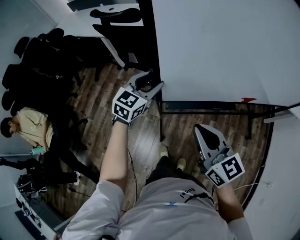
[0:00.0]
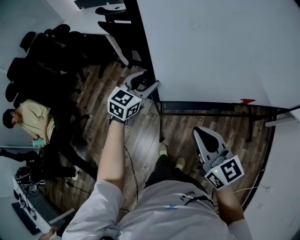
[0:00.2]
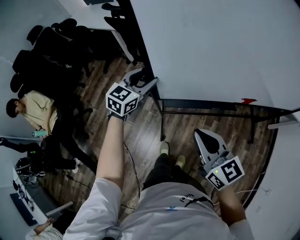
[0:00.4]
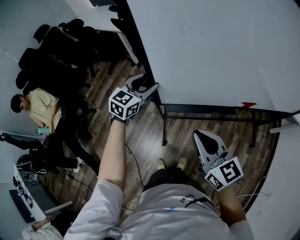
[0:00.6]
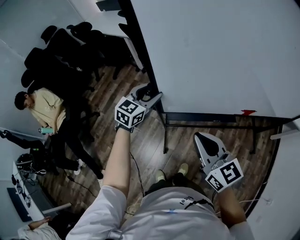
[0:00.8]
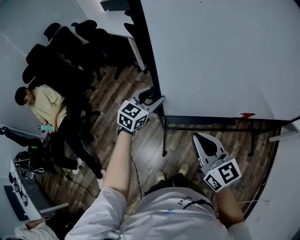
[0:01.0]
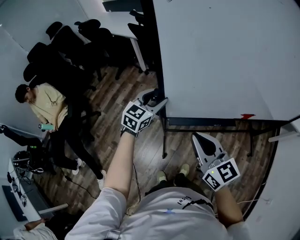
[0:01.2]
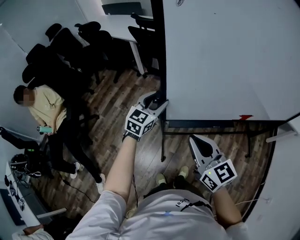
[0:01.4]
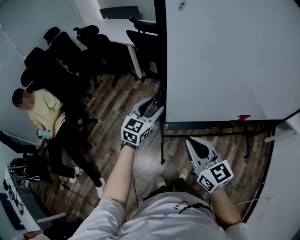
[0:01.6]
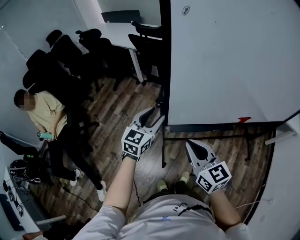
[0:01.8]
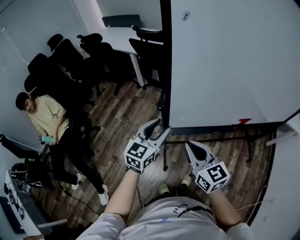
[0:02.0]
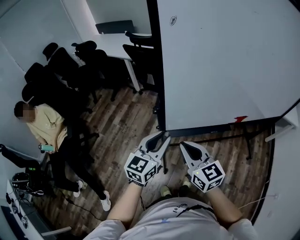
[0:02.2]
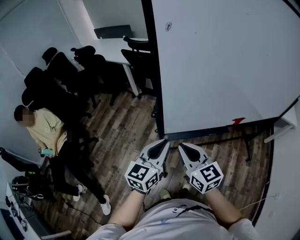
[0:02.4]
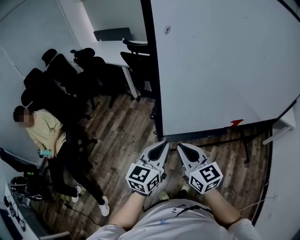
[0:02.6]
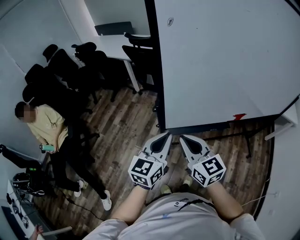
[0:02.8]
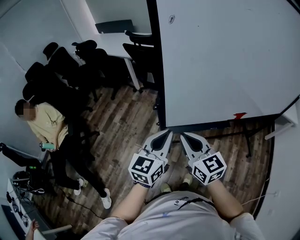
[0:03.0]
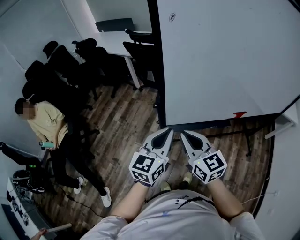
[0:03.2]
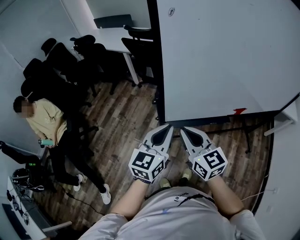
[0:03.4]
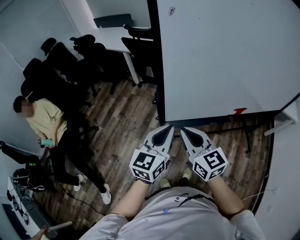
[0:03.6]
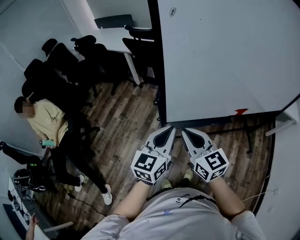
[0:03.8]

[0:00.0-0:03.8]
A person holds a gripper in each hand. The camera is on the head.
0.0 to 1.2 s: The two grippers go roughly 20 cm backward and to the left.
1.2 to 2.6 s: The left gripper is displaced backward and upward by roughly 20 cm, turns by about 20 degrees, and closes up. Meanwhile the right gripper travels to the left by approximately 5 cm.
2.6 to 3.8 s: There are only small adjustments of the grippers.

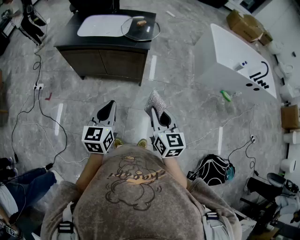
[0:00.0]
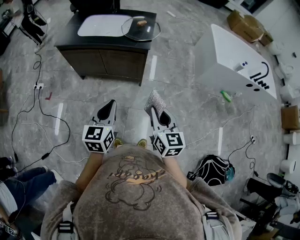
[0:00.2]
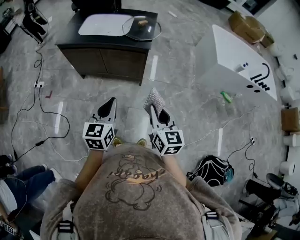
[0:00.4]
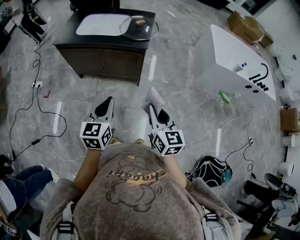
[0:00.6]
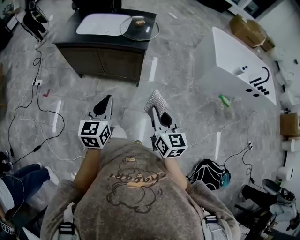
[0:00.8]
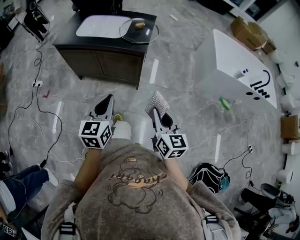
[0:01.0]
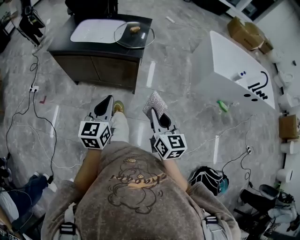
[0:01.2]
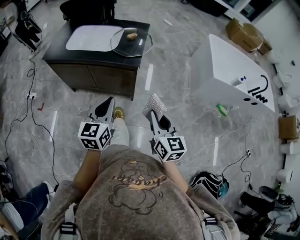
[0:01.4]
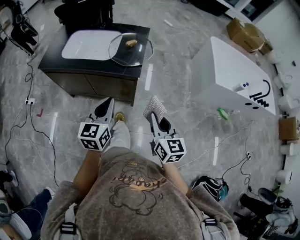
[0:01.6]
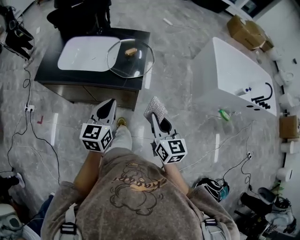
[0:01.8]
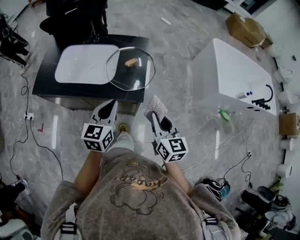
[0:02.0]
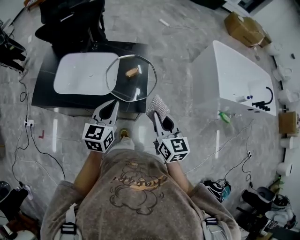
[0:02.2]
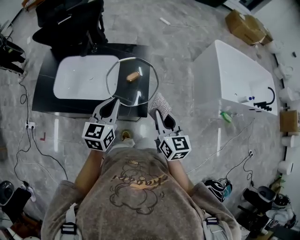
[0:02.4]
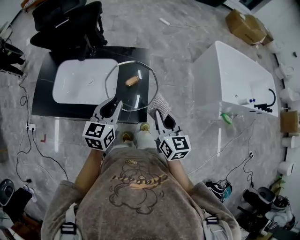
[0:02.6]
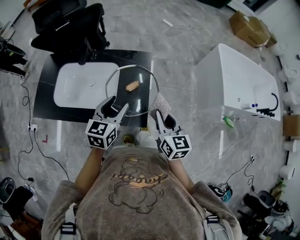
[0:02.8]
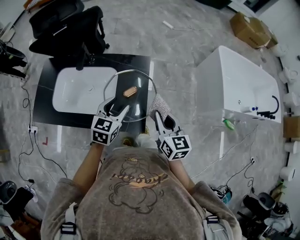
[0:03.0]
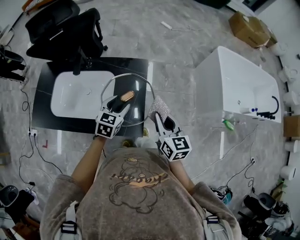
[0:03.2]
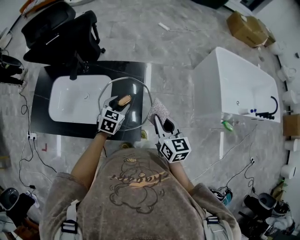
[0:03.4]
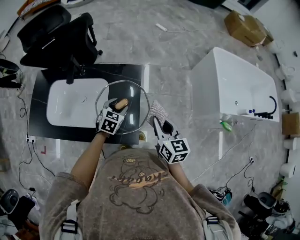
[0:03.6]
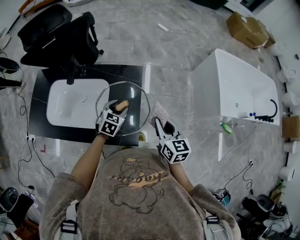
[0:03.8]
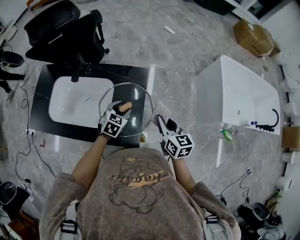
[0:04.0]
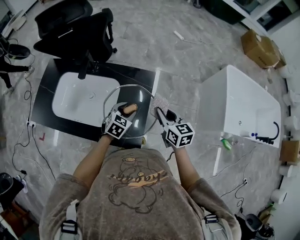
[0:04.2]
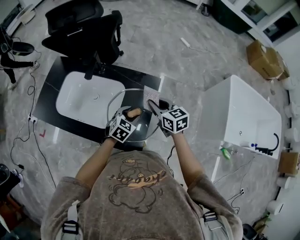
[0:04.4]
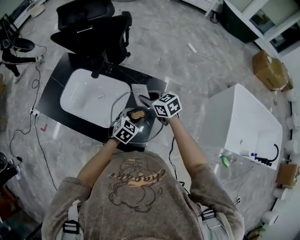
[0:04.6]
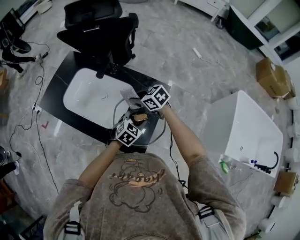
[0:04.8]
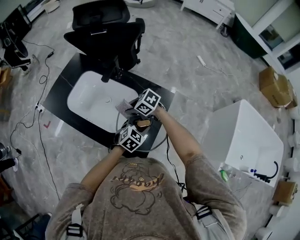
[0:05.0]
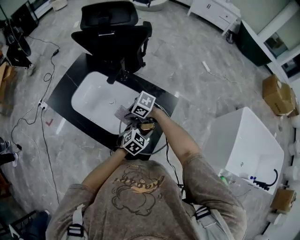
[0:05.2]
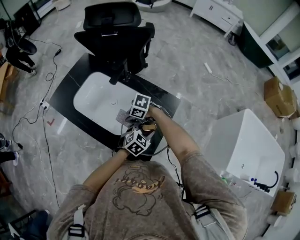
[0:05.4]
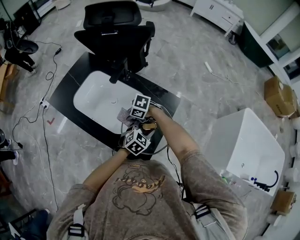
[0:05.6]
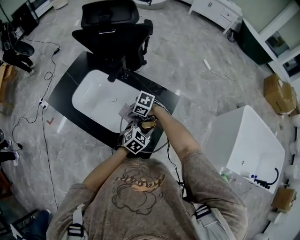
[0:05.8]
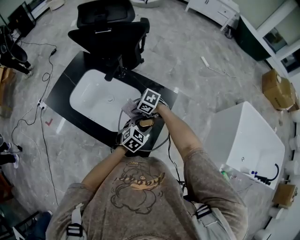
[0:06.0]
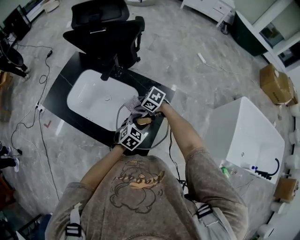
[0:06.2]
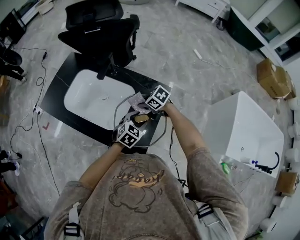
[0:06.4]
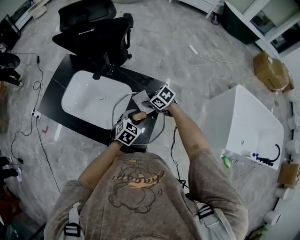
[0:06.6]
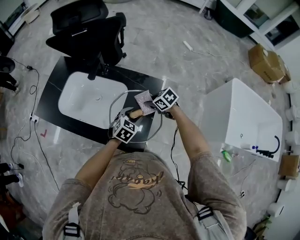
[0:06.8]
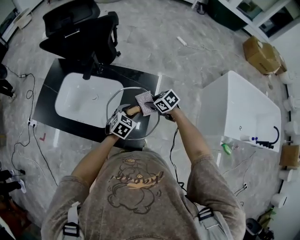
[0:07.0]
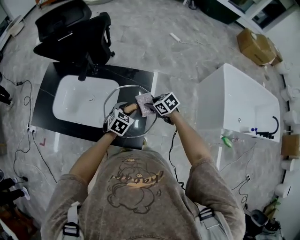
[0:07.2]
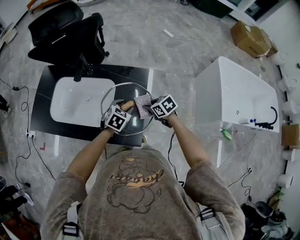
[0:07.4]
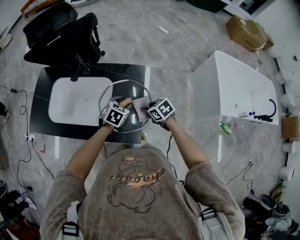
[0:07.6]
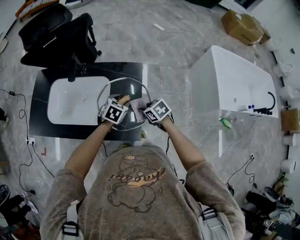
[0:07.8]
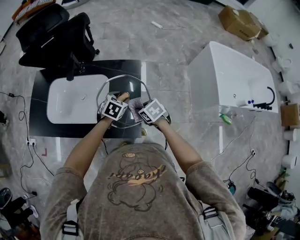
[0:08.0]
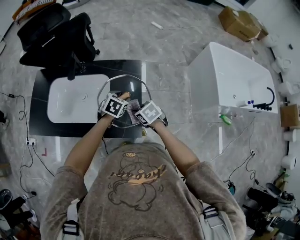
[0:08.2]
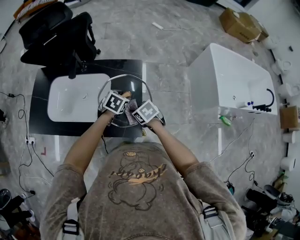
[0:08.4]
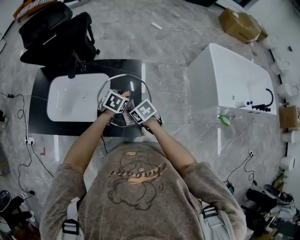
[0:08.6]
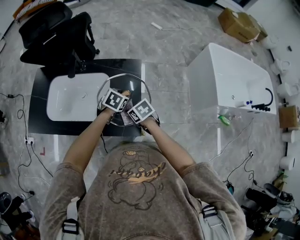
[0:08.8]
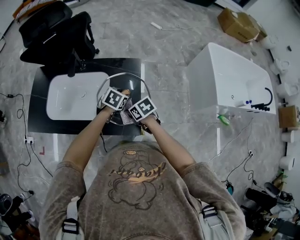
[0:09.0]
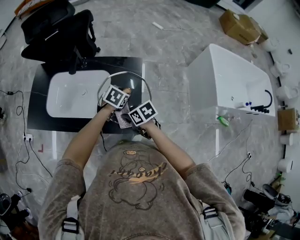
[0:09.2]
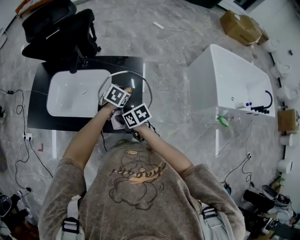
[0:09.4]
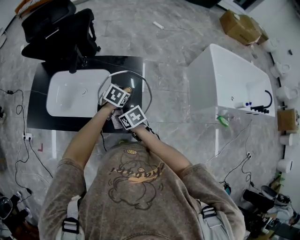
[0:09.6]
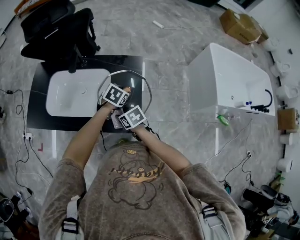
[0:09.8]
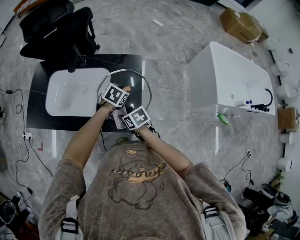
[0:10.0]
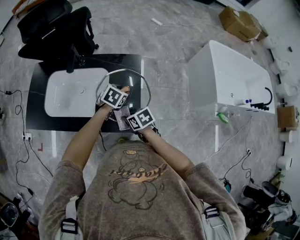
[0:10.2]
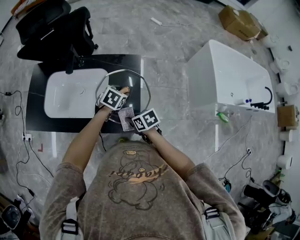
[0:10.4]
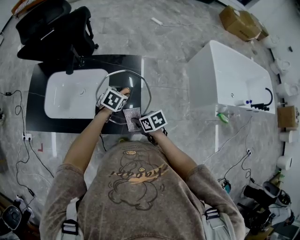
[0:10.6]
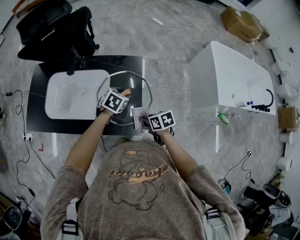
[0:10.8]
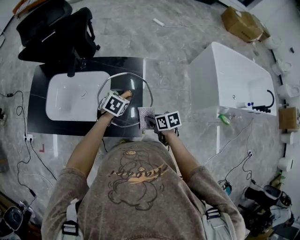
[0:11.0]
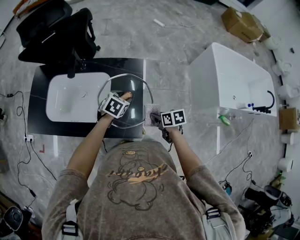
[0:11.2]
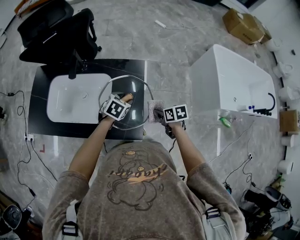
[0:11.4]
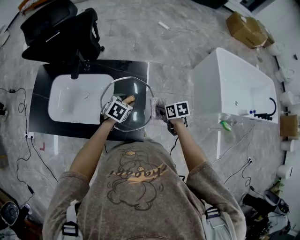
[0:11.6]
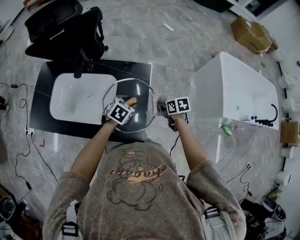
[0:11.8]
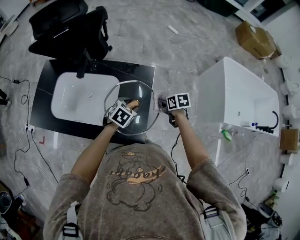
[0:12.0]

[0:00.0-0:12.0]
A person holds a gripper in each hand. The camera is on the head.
0.0 to 1.6 s: The grippers both shift forward by approximately 20 cm.
1.6 to 3.0 s: Both grippers move forward, approximately 35 cm. The left gripper rotates approximately 20 degrees, and opens.
3.0 to 4.4 s: The left gripper is displaced downward and forward by some 15 cm; the right gripper goes some 20 cm forward, and rotates some 30 degrees.
4.4 to 6.0 s: The right gripper changes place by approximately 20 cm, and swivels approximately 70 degrees.
6.0 to 7.6 s: The right gripper moves about 20 cm, and swivels about 50 degrees.
7.6 to 9.0 s: The right gripper moves to the left, about 10 cm.
9.0 to 10.4 s: The right gripper ends up roughly 5 cm from where it was.
10.4 to 12.0 s: The right gripper goes about 25 cm forward and to the right.

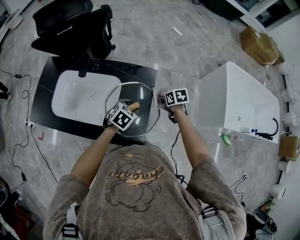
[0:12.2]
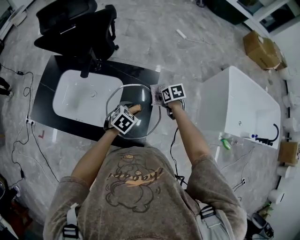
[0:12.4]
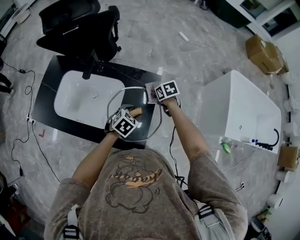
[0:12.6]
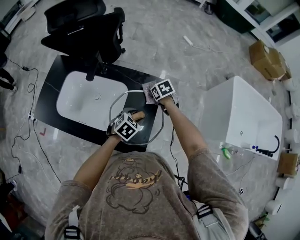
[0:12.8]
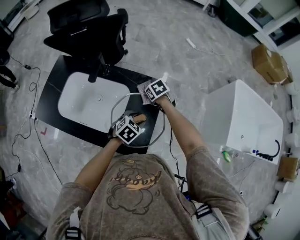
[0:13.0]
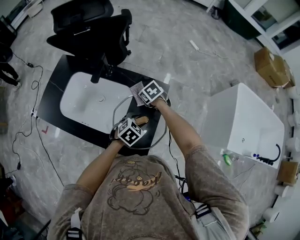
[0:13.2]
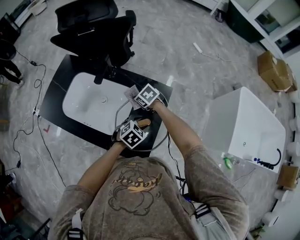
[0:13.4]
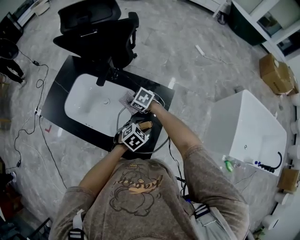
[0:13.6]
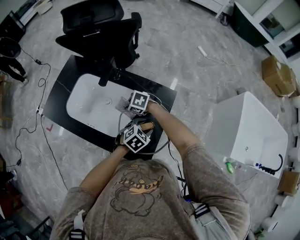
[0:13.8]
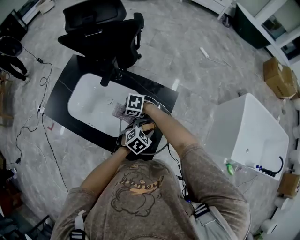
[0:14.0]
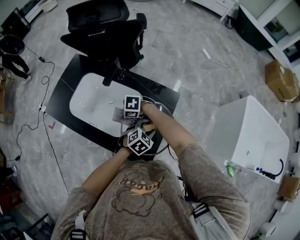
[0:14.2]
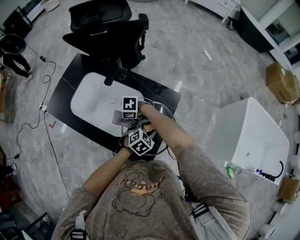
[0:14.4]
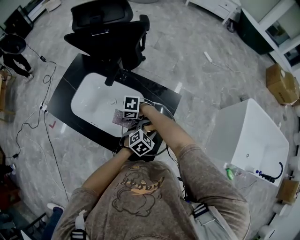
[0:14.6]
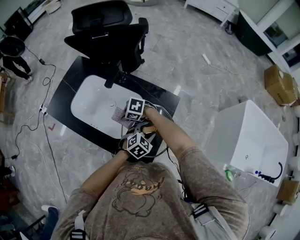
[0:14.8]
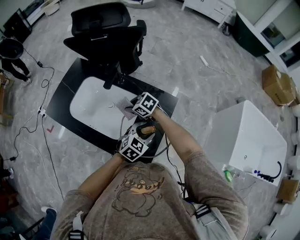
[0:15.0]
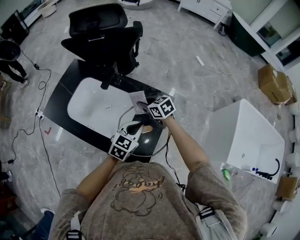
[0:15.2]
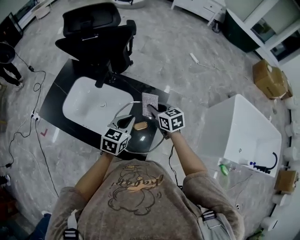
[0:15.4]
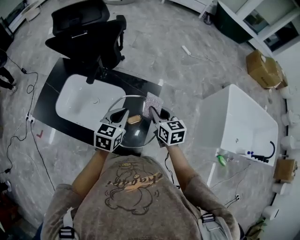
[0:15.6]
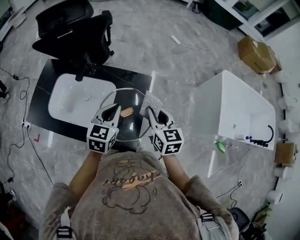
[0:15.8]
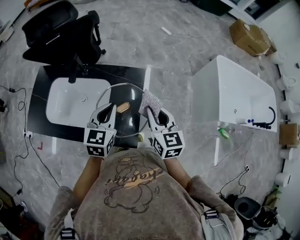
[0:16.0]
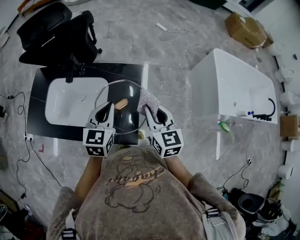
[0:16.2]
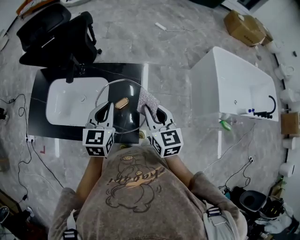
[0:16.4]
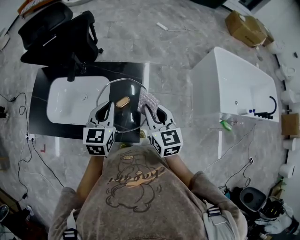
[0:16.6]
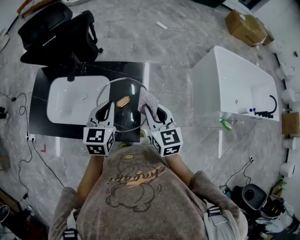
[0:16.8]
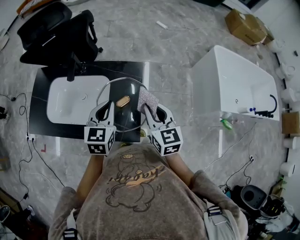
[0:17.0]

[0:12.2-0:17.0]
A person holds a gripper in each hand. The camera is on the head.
12.2 to 13.8 s: The right gripper changes place by about 30 cm, and rotates around the line of its fingers by roughly 70 degrees, counterclockwise from behind.
13.8 to 15.4 s: The right gripper changes place by roughly 20 cm, and turns by some 60 degrees, while the left gripper goes about 10 cm upward, changes its angle by some 30 degrees, and closes.
15.4 to 17.0 s: The right gripper shifts about 20 cm backward, upward and to the right, and turns by roughly 30 degrees. The left gripper travels upward by approximately 5 cm.

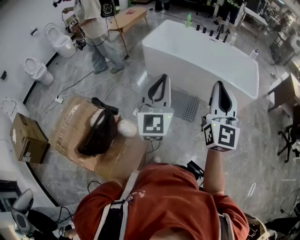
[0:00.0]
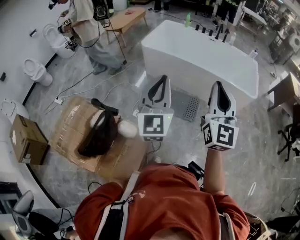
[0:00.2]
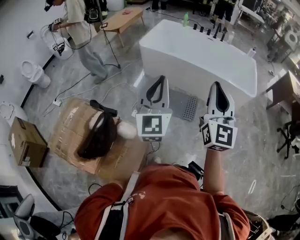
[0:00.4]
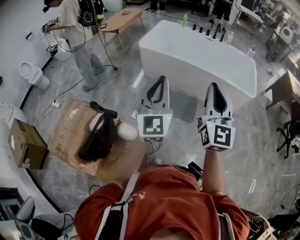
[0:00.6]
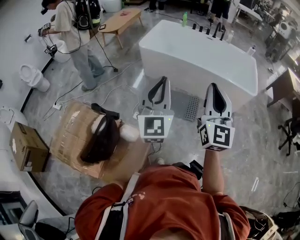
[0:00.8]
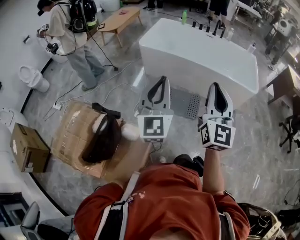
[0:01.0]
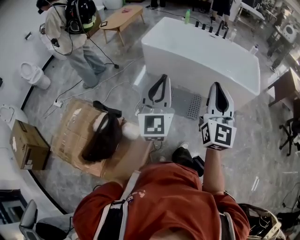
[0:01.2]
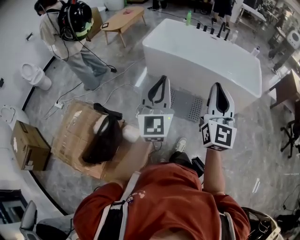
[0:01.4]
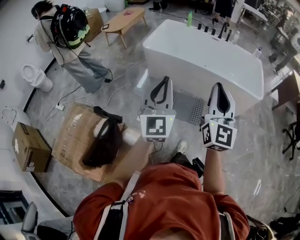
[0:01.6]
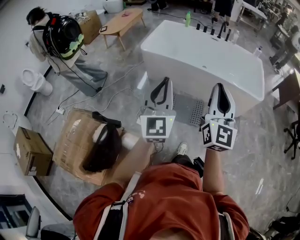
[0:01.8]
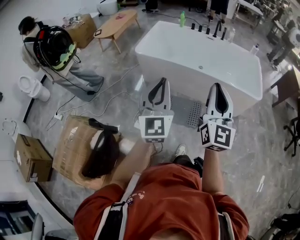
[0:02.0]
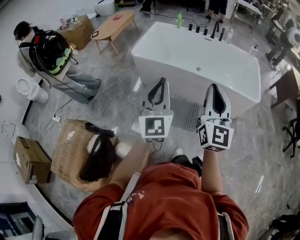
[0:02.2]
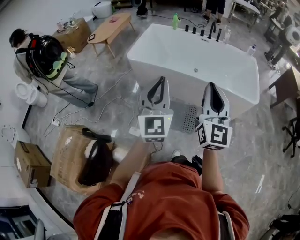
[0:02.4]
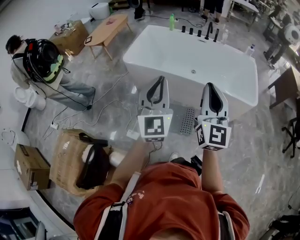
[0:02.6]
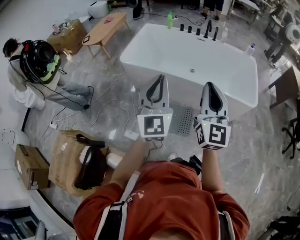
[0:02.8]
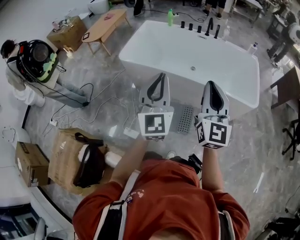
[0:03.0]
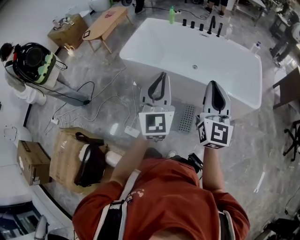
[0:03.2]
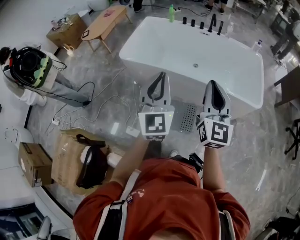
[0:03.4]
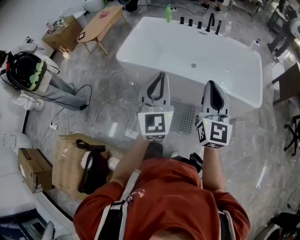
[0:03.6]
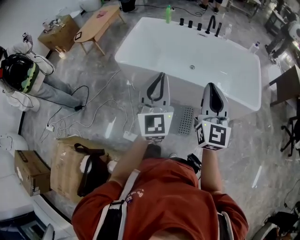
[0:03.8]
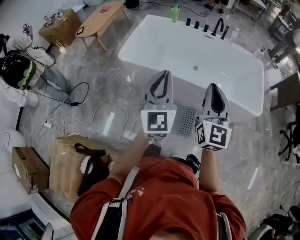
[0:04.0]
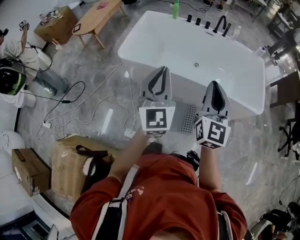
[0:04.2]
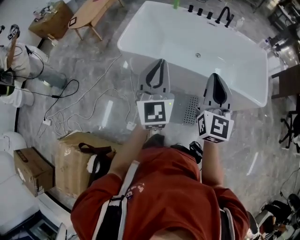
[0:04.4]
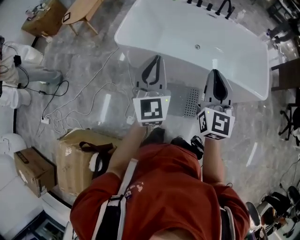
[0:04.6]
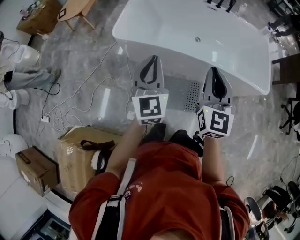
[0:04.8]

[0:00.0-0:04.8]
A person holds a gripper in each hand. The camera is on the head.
0.0 to 1.6 s: The grippers both shift forward by some 5 cm.
1.6 to 3.2 s: The two grippers go some 30 cm forward and to the right.
3.2 to 4.8 s: The two grippers go some 25 cm to the left, forward and downward.
